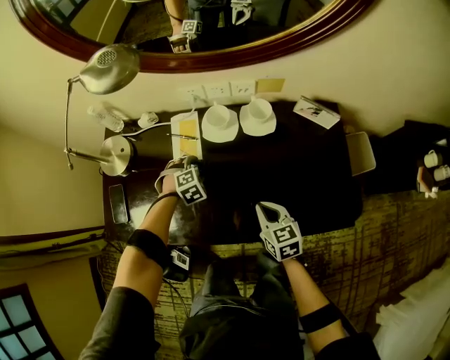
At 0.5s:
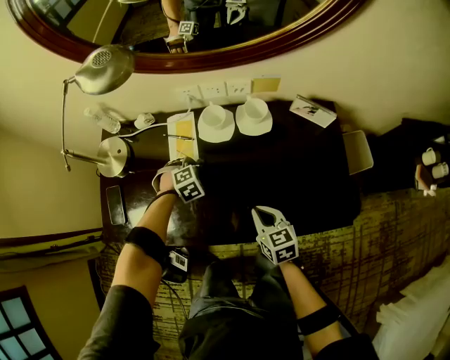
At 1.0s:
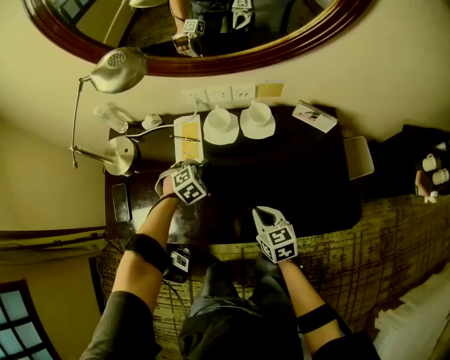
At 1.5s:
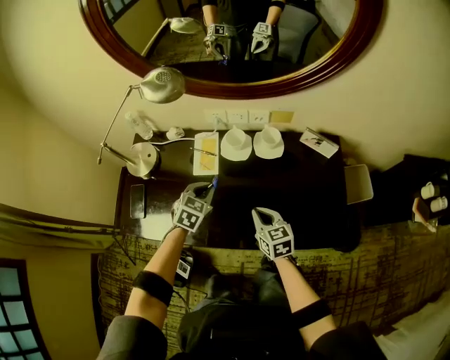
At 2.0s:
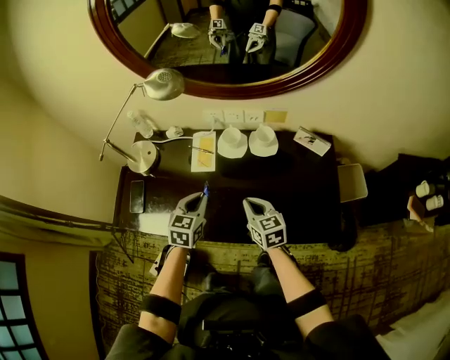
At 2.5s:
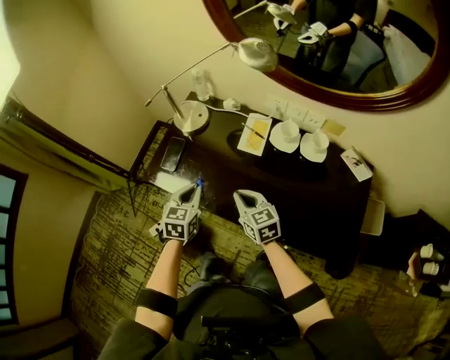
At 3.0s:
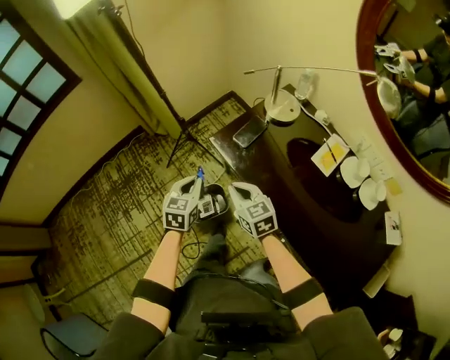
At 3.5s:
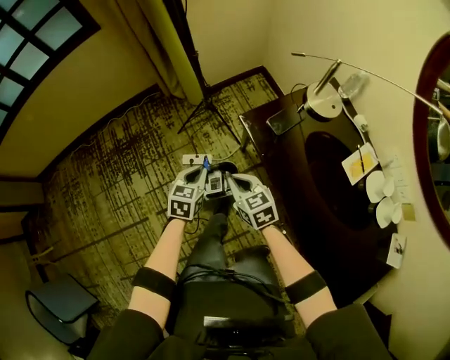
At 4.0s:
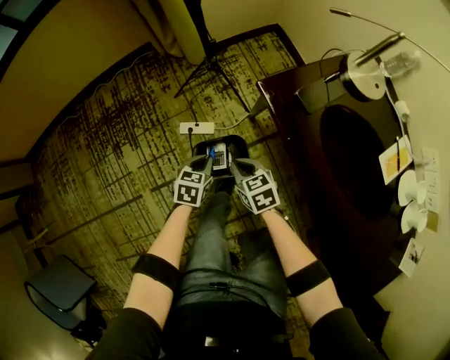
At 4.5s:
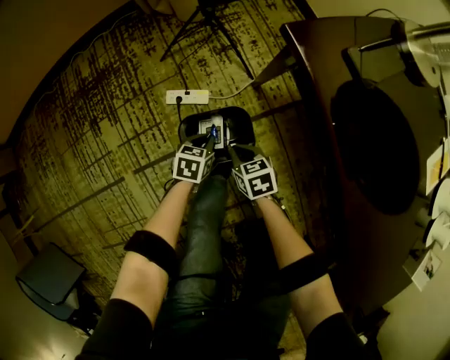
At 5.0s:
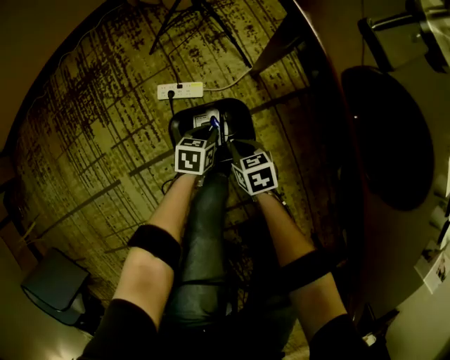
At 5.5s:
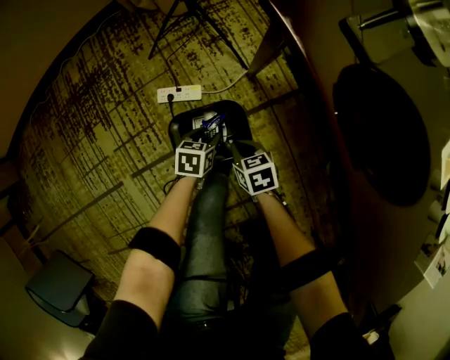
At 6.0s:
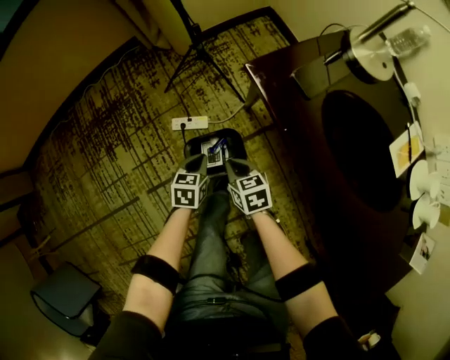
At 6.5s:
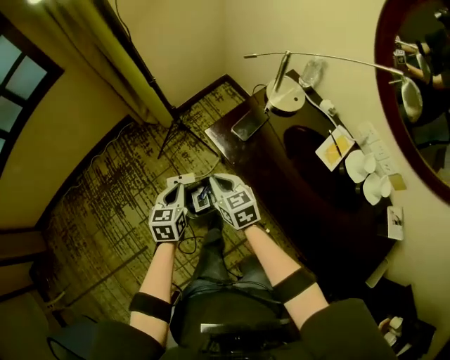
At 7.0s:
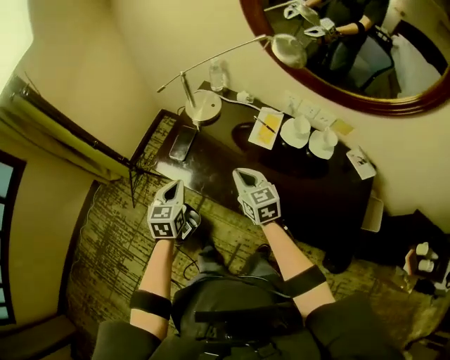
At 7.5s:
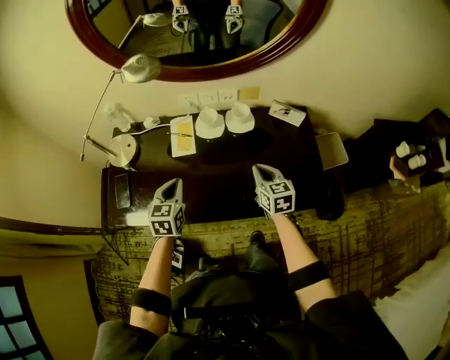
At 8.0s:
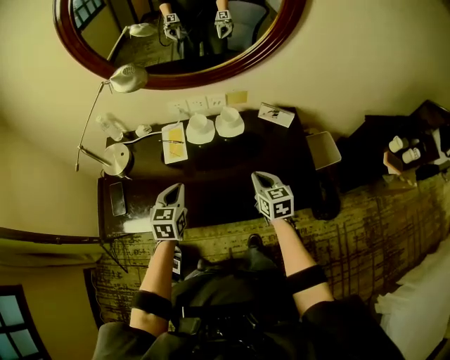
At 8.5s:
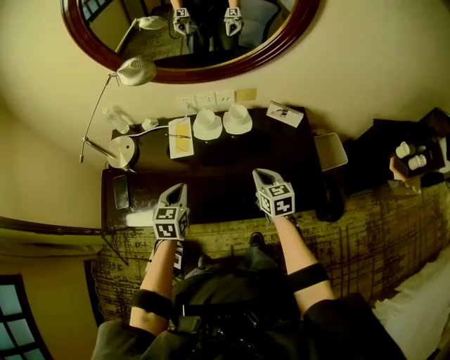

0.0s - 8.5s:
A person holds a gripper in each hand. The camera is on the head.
0.0s - 2.0s: The left gripper is displaced upward and backward by some 25 cm, rolls counterclockwise, seen from behind, by some 60 degrees, and closes its fingers. Meanwhile the right gripper heads upward, covering some 10 cm.
2.0s - 4.0s: The pair of grippers is taken approximately 60 cm. The left gripper turns by some 60 degrees; the right gripper changes its angle by roughly 70 degrees.
4.0s - 6.5s: The two grippers go roughly 20 cm upward. The right gripper changes its angle by some 20 degrees. Meanwhile the left gripper opens, then closes once more.
6.5s - 8.5s: Both grippers are carried approximately 50 cm. The left gripper swivels approximately 60 degrees. The right gripper turns by approximately 70 degrees.

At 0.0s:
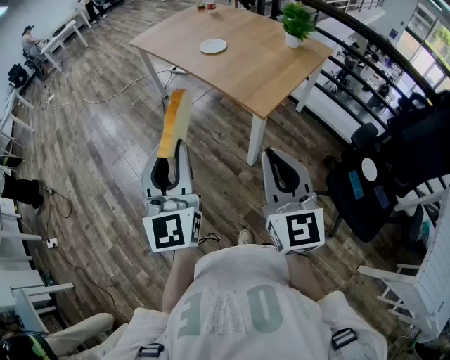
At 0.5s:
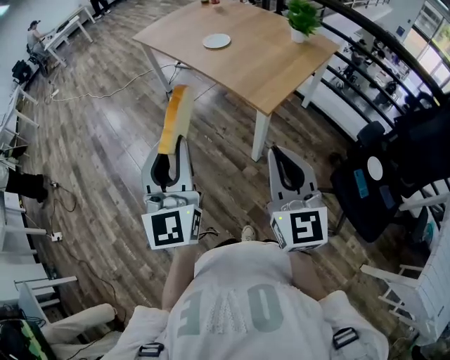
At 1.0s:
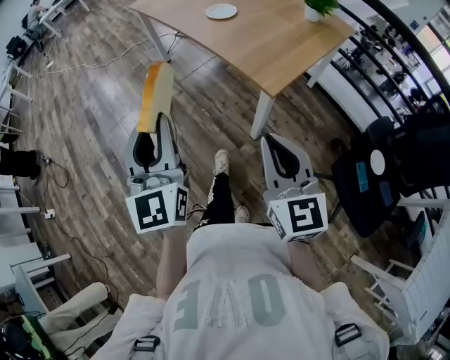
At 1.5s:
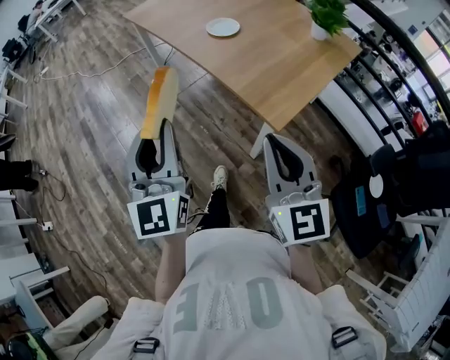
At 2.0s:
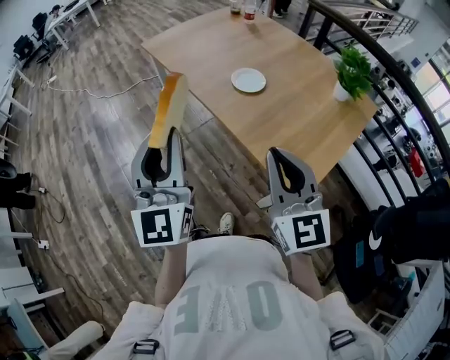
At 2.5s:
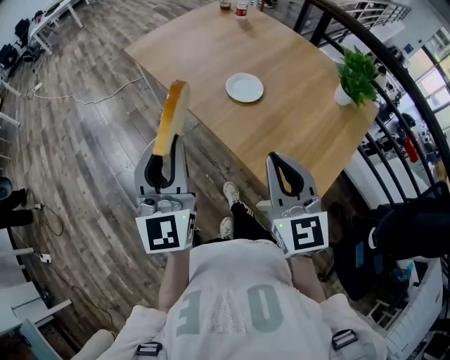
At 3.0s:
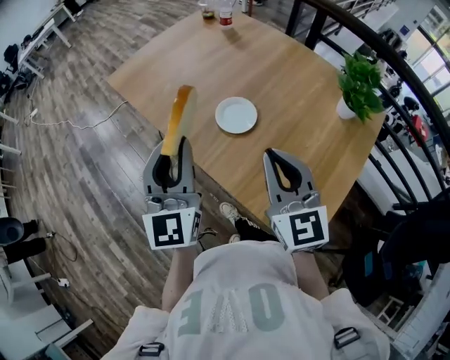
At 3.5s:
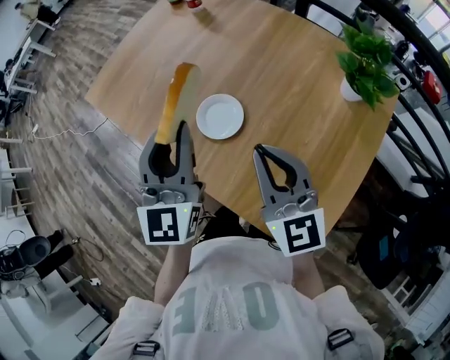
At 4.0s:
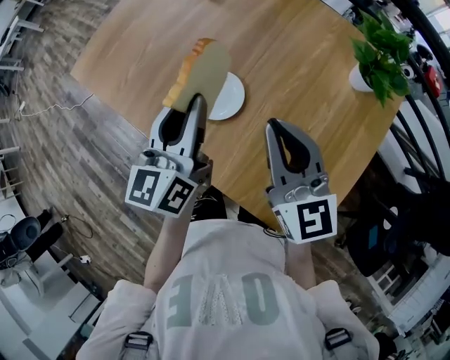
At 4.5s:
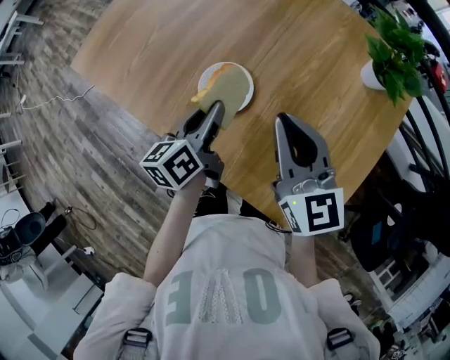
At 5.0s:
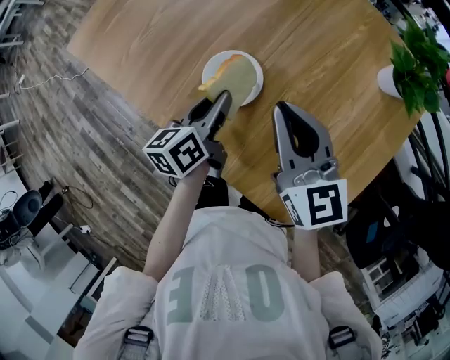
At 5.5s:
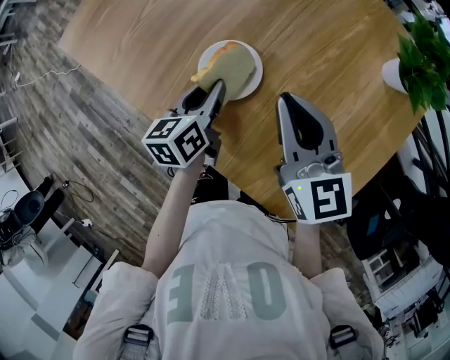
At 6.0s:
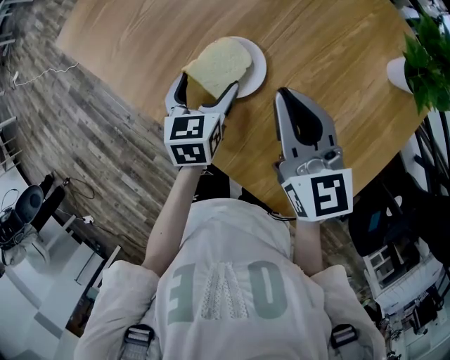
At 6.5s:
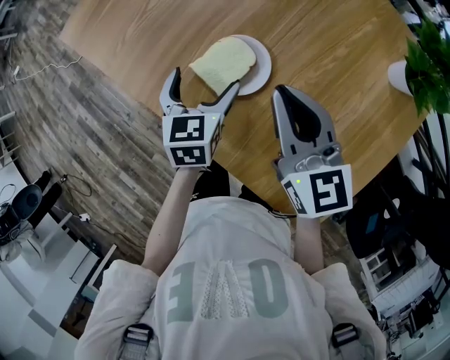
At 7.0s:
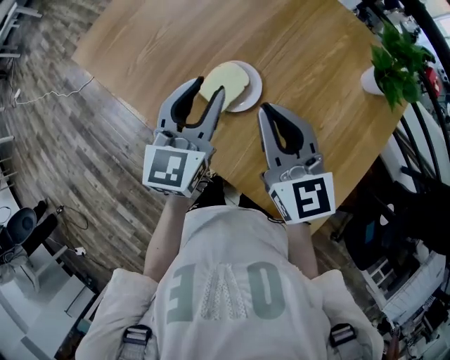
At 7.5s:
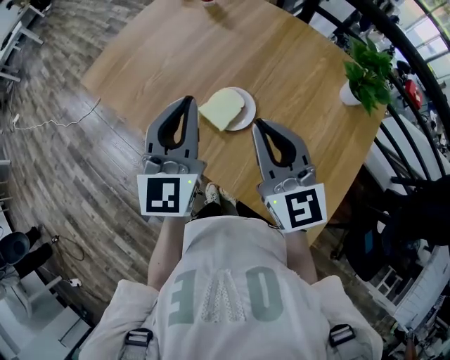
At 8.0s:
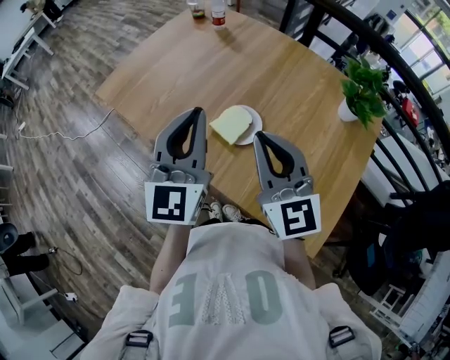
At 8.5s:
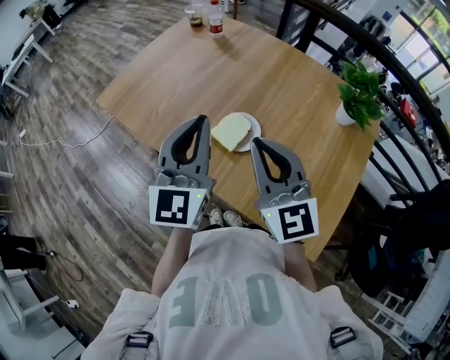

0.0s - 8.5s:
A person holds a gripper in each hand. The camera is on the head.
0.0s - 2.0s: Both grippers travel together forward, about 35 cm.
2.0s - 4.0s: The left gripper moves forward and to the right, roughly 40 cm, and turns by about 40 degrees. The right gripper is displaced forward by about 30 cm.
4.0s - 6.5s: The left gripper heads downward, covering roughly 20 cm, points its fingers approximately 30 degrees further downward, and opens up. Meanwhile the right gripper shifts some 10 cm downward and forward.
6.5s - 8.5s: The left gripper goes approximately 30 cm upward, points its fingers approximately 40 degrees further upward, and closes up; the right gripper goes approximately 20 cm upward, to the left and backward, and turns by about 20 degrees.

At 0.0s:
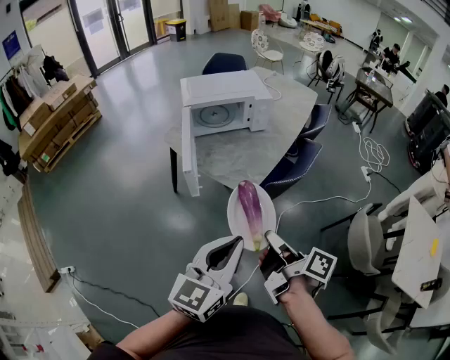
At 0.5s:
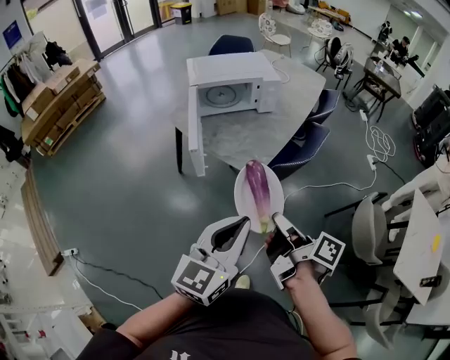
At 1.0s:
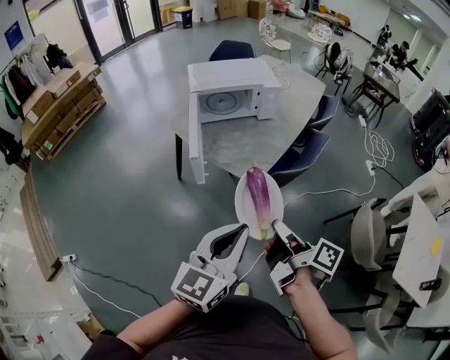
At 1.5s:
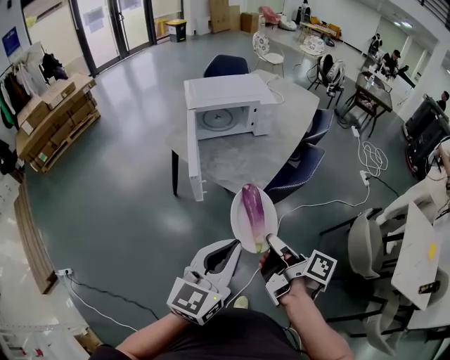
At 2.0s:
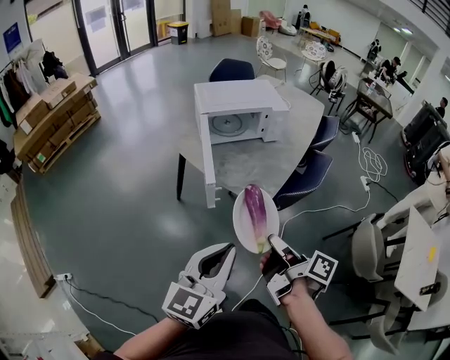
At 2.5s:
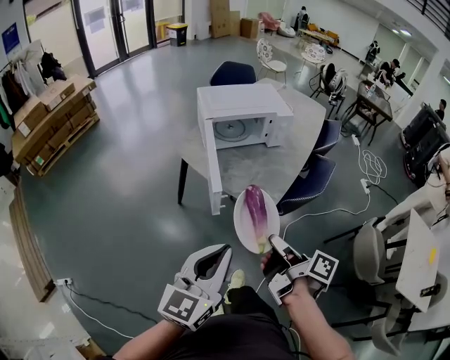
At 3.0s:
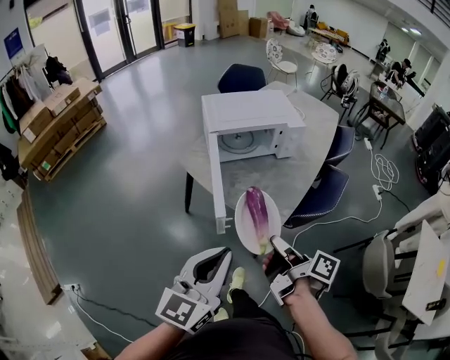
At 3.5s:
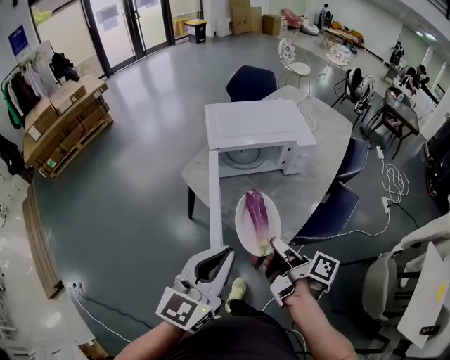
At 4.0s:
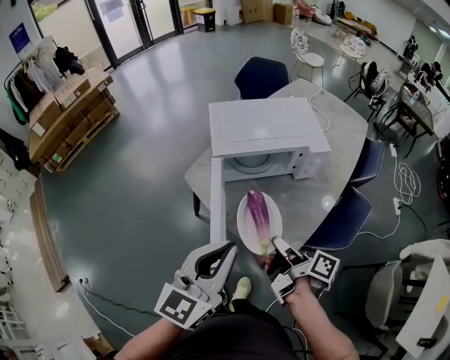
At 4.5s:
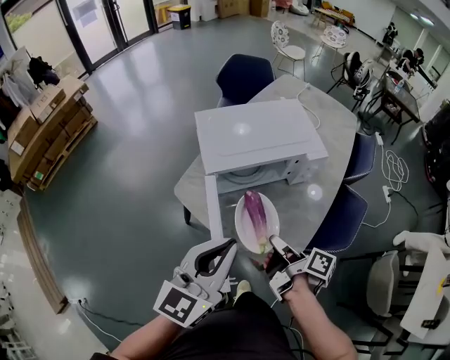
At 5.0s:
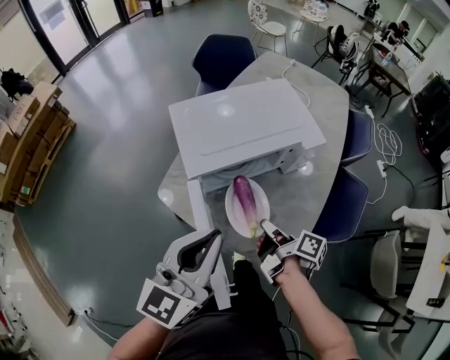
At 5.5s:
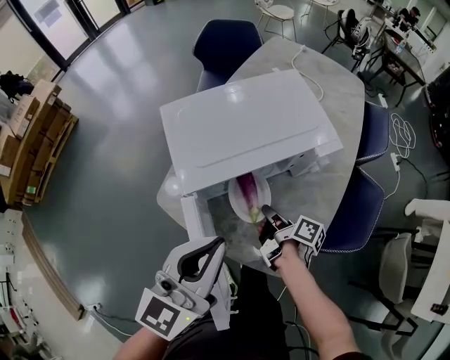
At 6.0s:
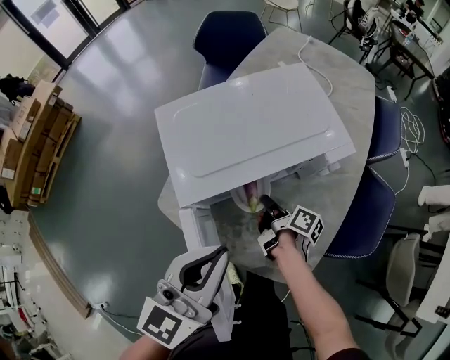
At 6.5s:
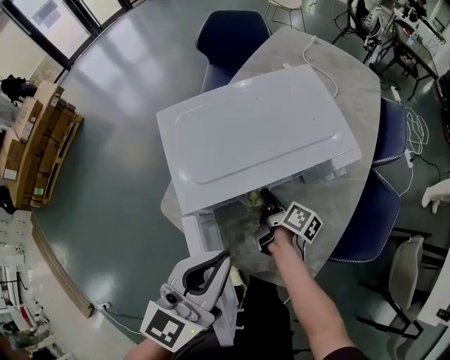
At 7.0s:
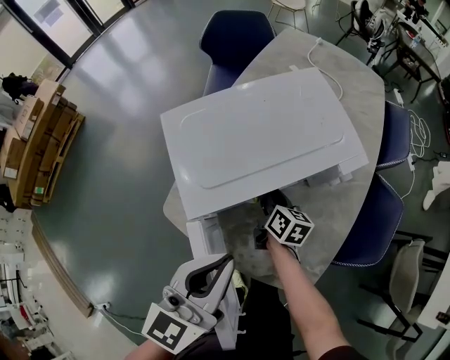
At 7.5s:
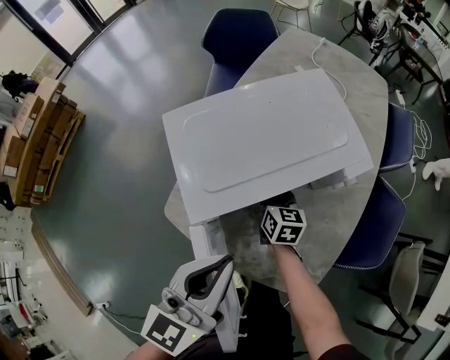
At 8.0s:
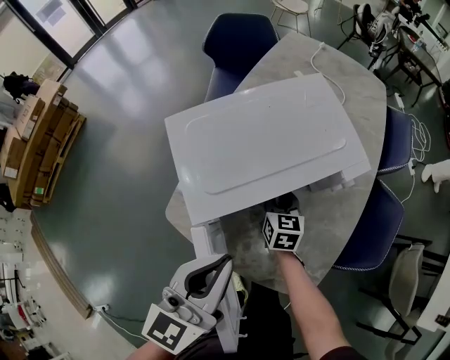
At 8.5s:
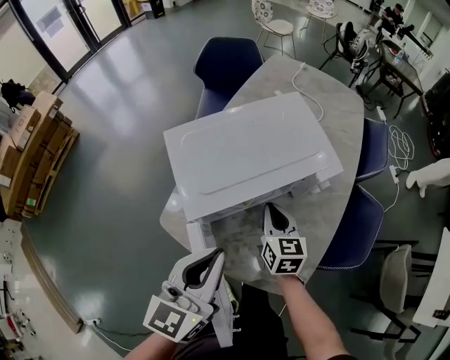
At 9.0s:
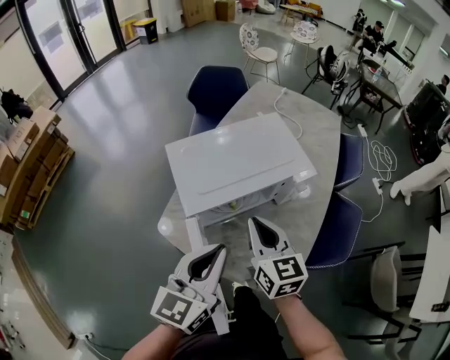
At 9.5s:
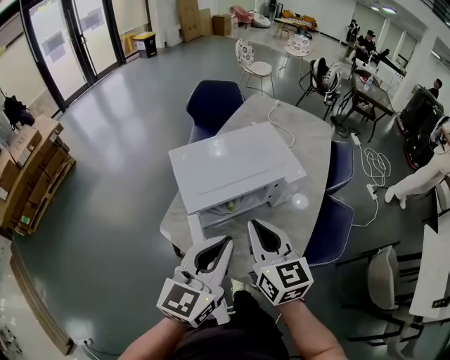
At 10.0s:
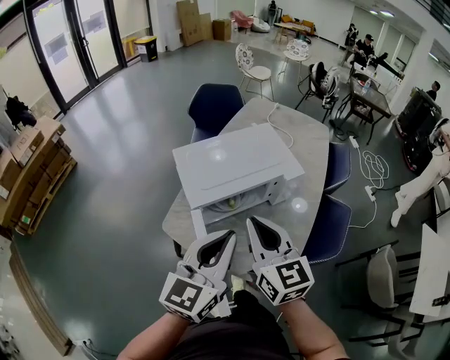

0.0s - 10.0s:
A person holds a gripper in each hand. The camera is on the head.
0.0s - 2.0s: The two grippers go roughly 10 cm to the left.
2.0s - 4.0s: Both grippers travel together forward, some 30 cm.
4.0s - 6.0s: The right gripper heads forward and downward, covering approximately 35 cm. Meanwhile the left gripper heads forward, covering some 20 cm.
6.0s - 8.0s: The right gripper travels forward by approximately 5 cm, and twists approximately 70 degrees counterclockwise, seen from behind.
8.0s - 10.0s: The left gripper shifts some 15 cm upward and backward. Meanwhile the right gripper goes roughly 40 cm upward and backward, and rotates roughly 30 degrees.
